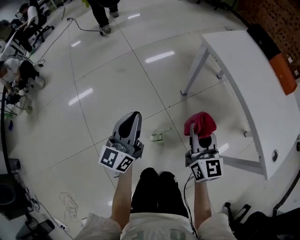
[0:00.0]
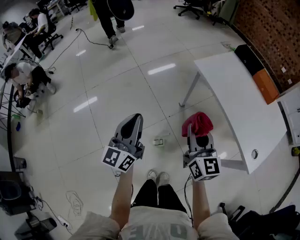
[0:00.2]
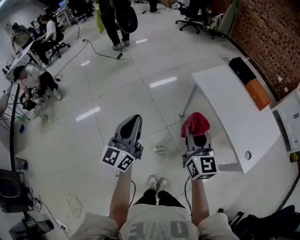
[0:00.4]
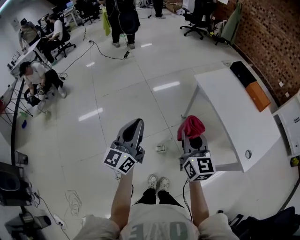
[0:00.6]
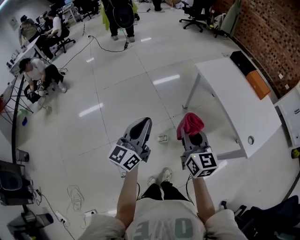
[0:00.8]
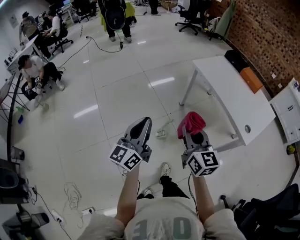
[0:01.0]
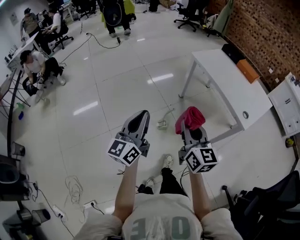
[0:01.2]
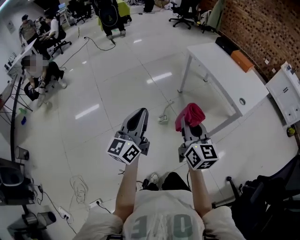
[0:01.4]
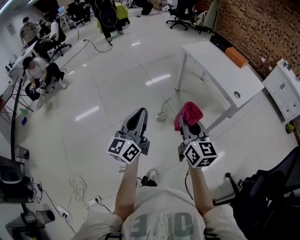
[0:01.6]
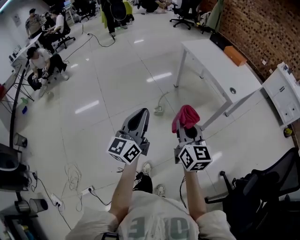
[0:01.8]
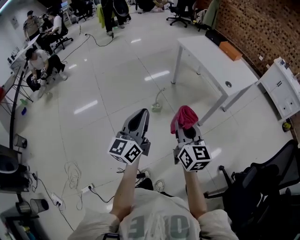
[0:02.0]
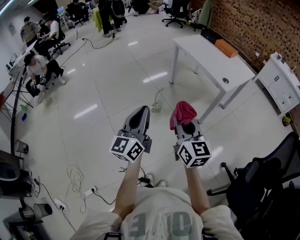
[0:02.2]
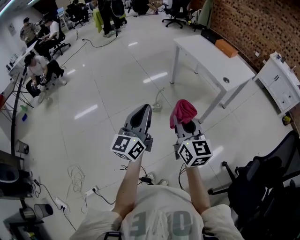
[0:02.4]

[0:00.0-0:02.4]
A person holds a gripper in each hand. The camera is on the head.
0.0 to 1.2 s: Both grippers travel together backward and upward, approximately 50 cm.
1.2 to 2.4 s: The left gripper is displaced backward and to the right by some 30 cm. The right gripper moves backward, about 30 cm.

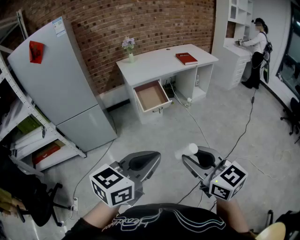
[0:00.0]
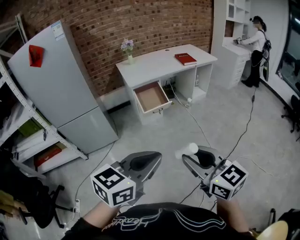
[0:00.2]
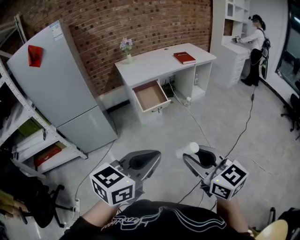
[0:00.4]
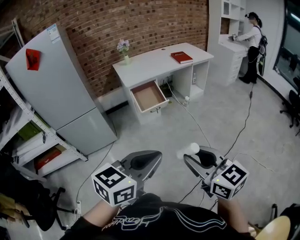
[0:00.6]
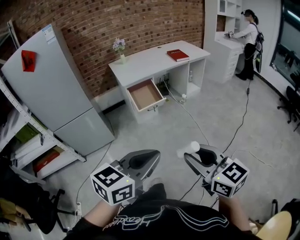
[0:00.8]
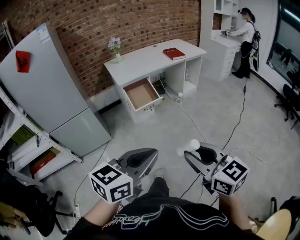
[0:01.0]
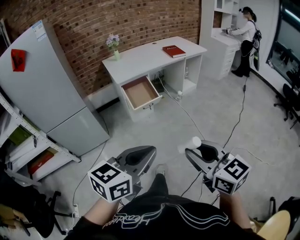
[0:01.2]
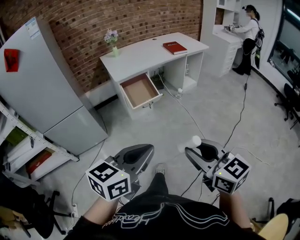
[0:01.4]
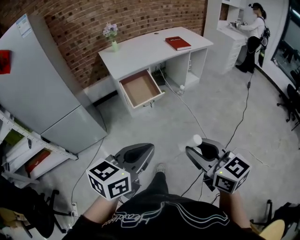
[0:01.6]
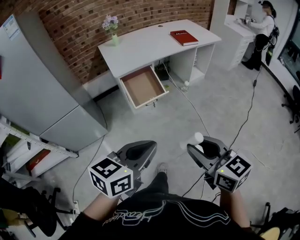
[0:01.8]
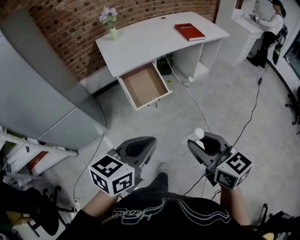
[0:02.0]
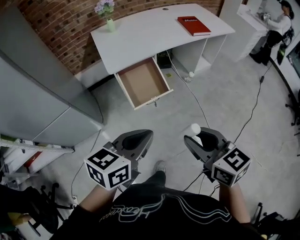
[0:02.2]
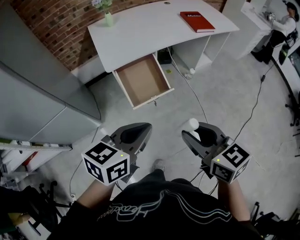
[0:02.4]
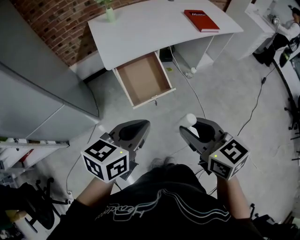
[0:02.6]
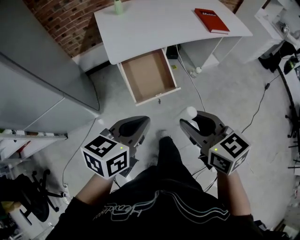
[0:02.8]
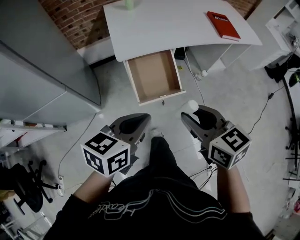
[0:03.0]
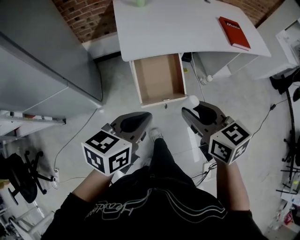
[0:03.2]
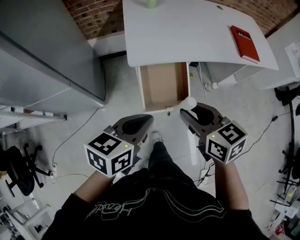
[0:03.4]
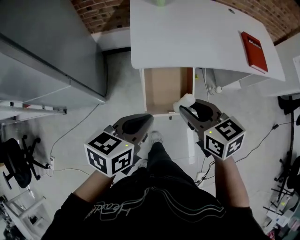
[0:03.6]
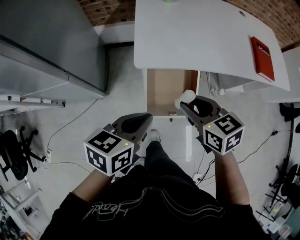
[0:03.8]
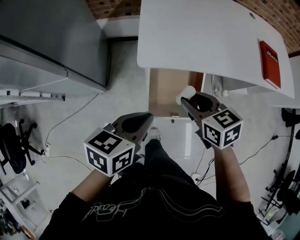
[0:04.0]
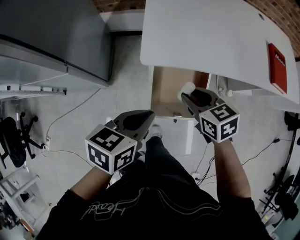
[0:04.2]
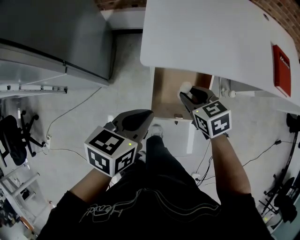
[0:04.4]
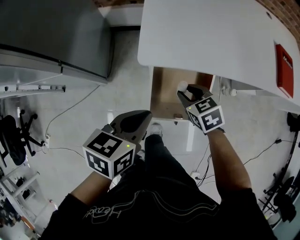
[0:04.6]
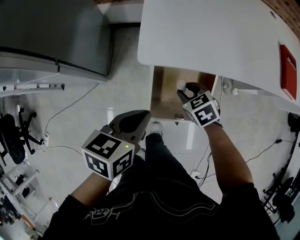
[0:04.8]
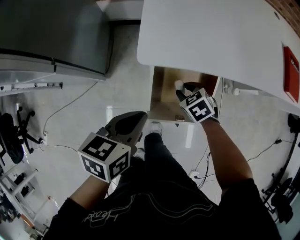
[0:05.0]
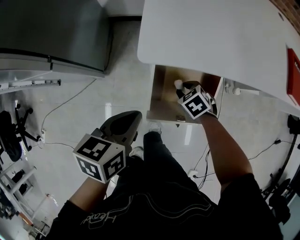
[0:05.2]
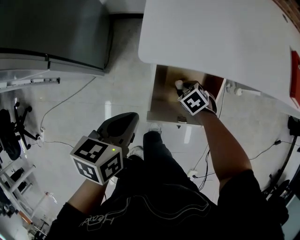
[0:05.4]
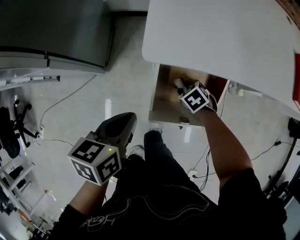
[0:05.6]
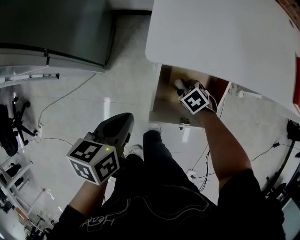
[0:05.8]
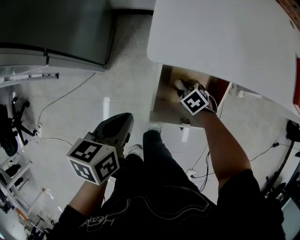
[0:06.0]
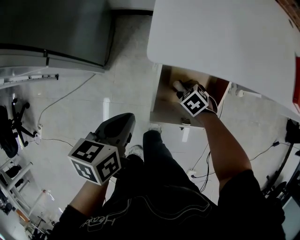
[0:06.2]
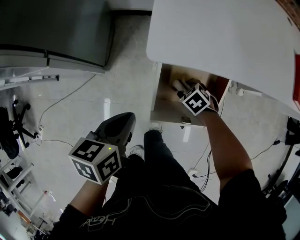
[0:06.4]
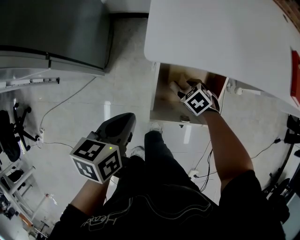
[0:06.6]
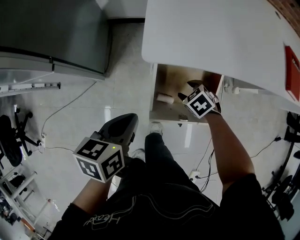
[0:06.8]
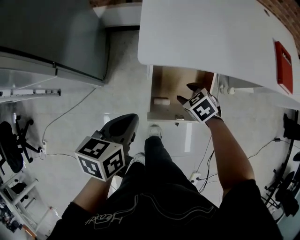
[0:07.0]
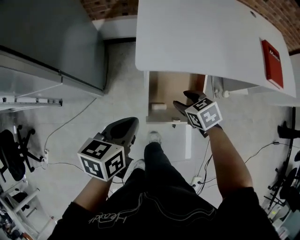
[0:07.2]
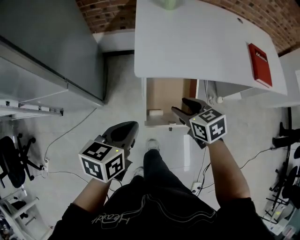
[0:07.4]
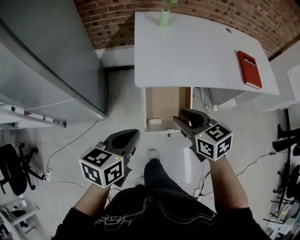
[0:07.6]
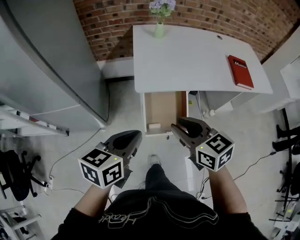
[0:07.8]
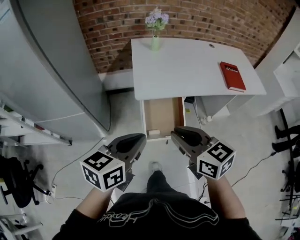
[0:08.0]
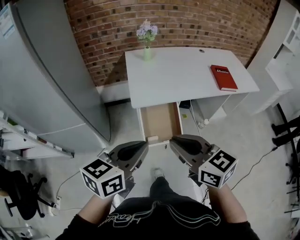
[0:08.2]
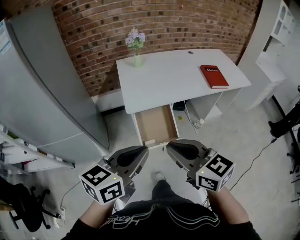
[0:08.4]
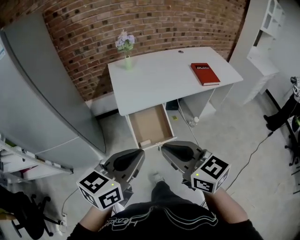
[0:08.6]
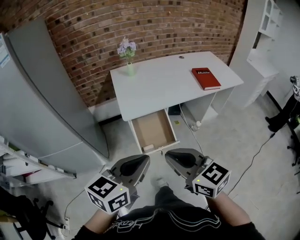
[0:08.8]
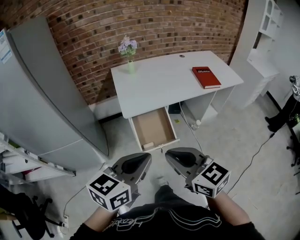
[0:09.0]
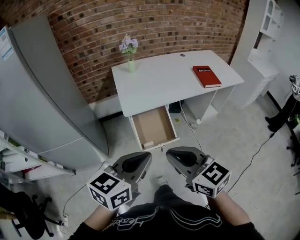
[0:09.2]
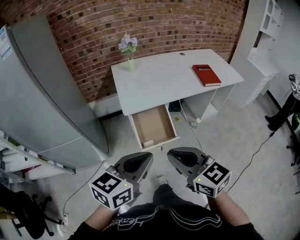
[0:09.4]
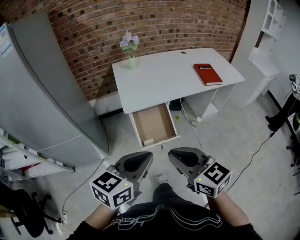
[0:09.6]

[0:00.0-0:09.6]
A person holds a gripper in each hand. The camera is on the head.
0.0 to 1.6 s: The left gripper shifts approximately 20 cm forward and downward, while the right gripper heads forward, covering about 15 cm.
1.6 to 3.2 s: Both grippers are carried forward, roughly 50 cm. The left gripper rotates about 20 degrees; the right gripper turns by some 20 degrees.
3.2 to 4.8 s: The right gripper heads downward and forward, covering approximately 40 cm, and tips its fingers downward by approximately 30 degrees. Meanwhile the left gripper is displaced forward and downward by about 25 cm, and rotates roughly 20 degrees.
4.8 to 6.4 s: The right gripper goes approximately 15 cm downward, and swivels approximately 20 degrees. Meanwhile the left gripper moves downward, some 10 cm.
6.4 to 8.0 s: The right gripper is displaced upward by some 60 cm, tips its fingers upward by approximately 60 degrees, and closes its fingers; the left gripper goes approximately 35 cm upward, and rotates some 40 degrees.
8.0 to 9.6 s: The left gripper travels backward and to the right by approximately 15 cm; the right gripper is displaced backward by some 15 cm.

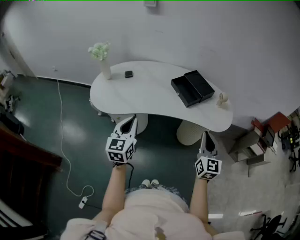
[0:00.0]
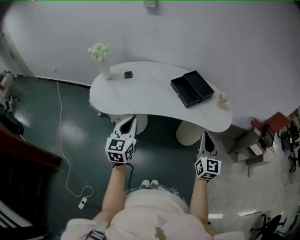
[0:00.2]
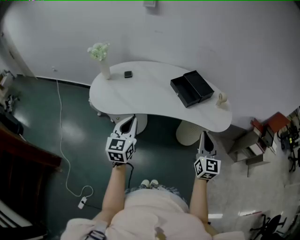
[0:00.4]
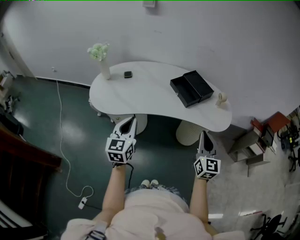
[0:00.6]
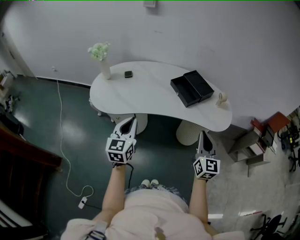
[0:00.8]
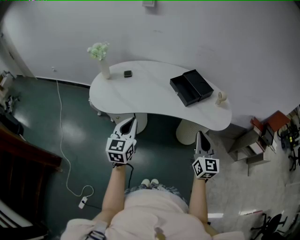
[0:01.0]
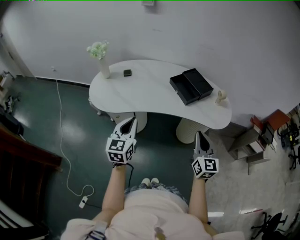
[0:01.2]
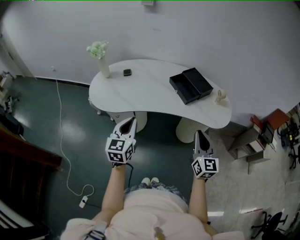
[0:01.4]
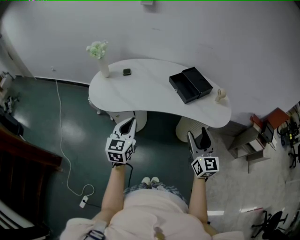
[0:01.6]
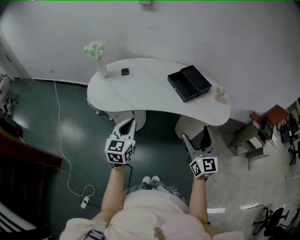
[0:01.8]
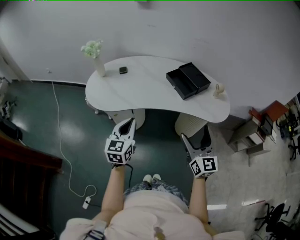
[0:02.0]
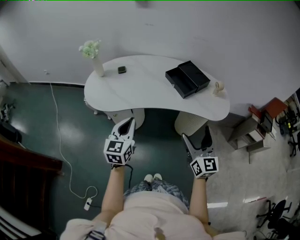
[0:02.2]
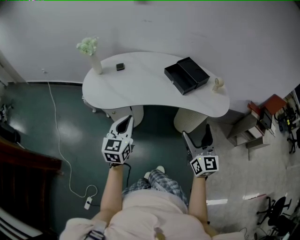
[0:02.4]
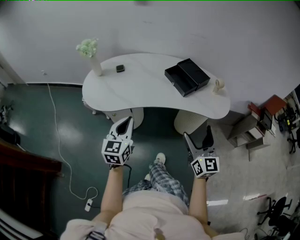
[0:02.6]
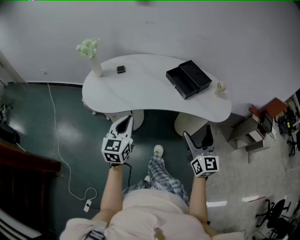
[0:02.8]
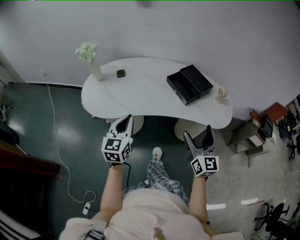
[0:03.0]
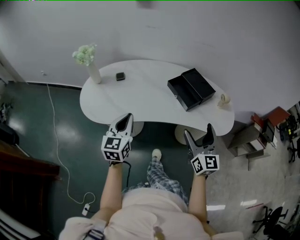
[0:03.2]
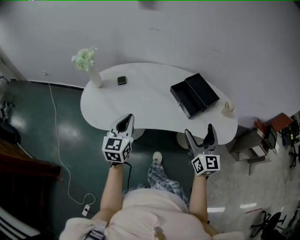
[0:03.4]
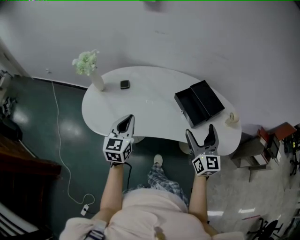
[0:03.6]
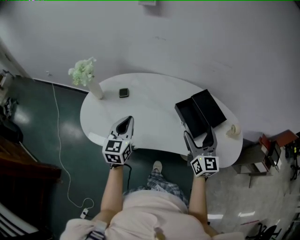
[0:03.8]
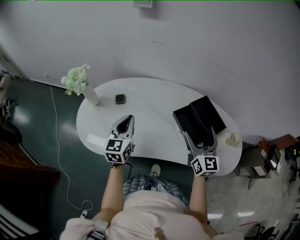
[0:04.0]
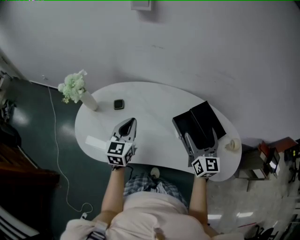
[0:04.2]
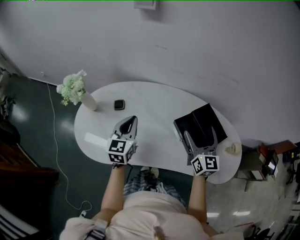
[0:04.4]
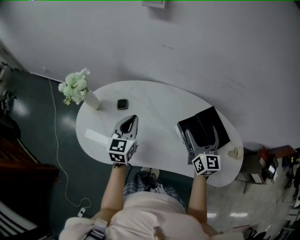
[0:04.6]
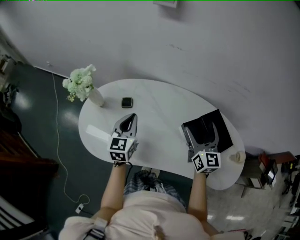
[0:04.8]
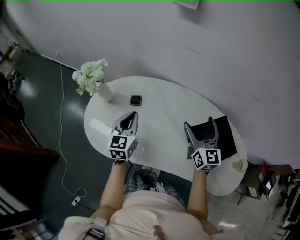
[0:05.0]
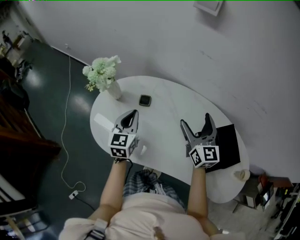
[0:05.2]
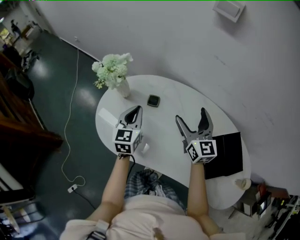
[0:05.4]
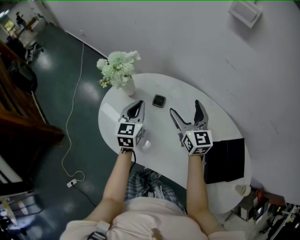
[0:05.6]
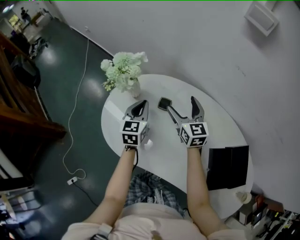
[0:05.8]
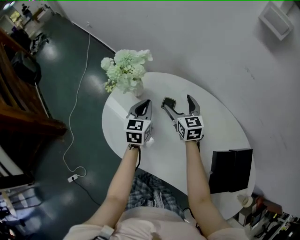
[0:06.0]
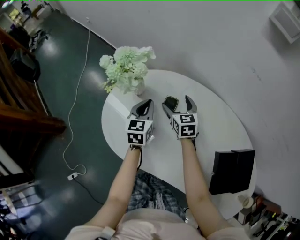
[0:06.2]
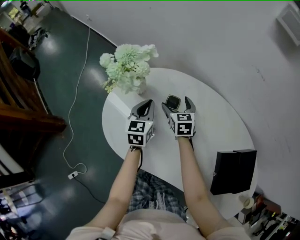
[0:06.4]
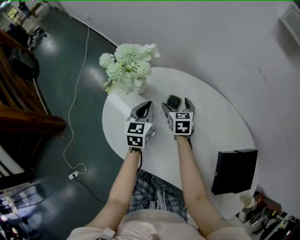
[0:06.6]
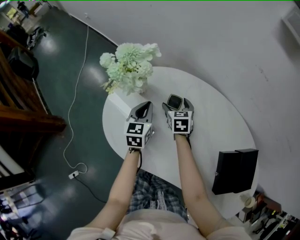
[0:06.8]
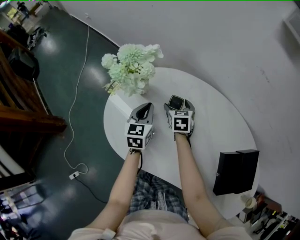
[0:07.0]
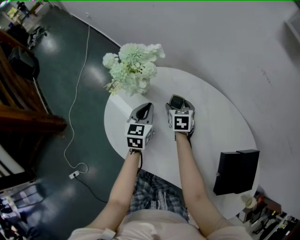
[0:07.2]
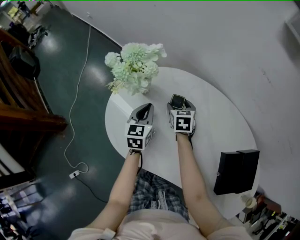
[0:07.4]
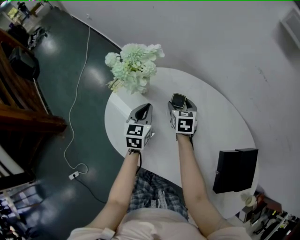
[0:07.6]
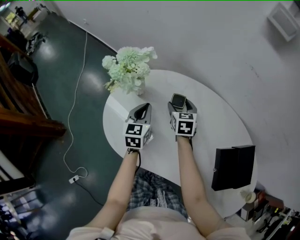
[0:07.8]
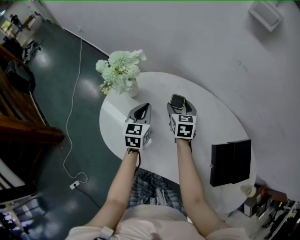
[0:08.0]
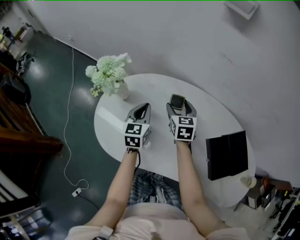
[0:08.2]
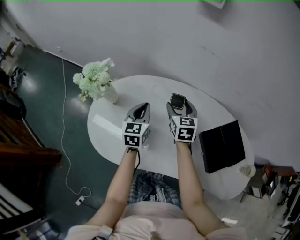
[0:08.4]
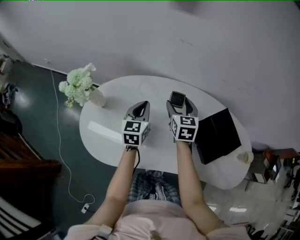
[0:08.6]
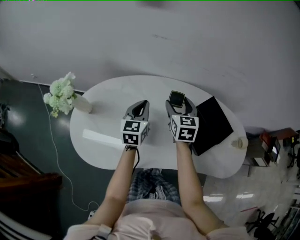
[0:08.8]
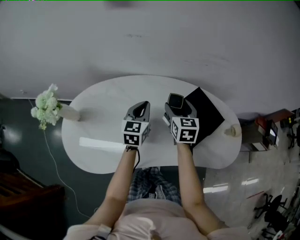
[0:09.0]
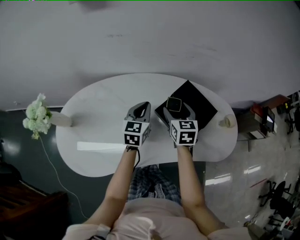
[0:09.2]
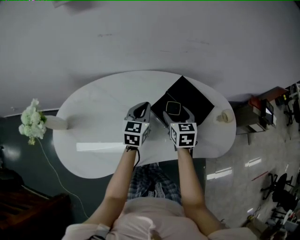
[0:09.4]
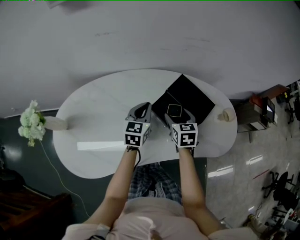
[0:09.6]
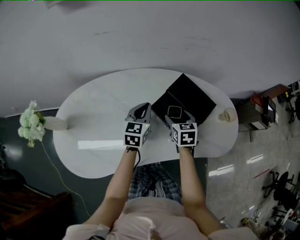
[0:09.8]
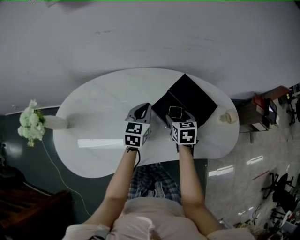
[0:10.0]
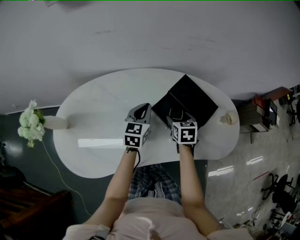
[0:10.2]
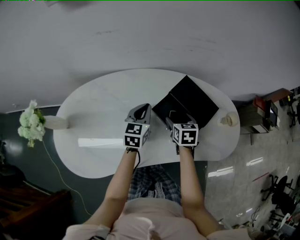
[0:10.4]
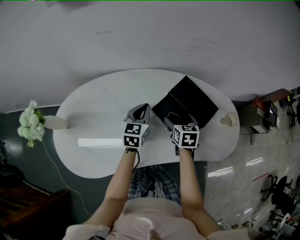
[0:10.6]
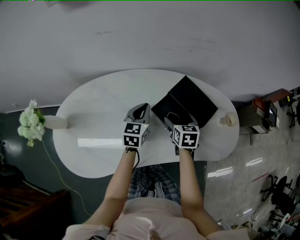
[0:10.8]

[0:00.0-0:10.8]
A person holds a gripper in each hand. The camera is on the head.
0.0 to 1.6 s: The right gripper opens its fingers.
1.6 to 3.0 s: The grippers both shift forward by approximately 5 cm. The right gripper opens.
3.0 to 4.6 s: The two grippers go roughly 35 cm forward.
4.6 to 6.2 s: The right gripper shifts by about 50 cm, and swivels approximately 50 degrees. Meanwhile the left gripper moves about 25 cm, and turns by roughly 30 degrees.
7.8 to 9.2 s: The pair of grippers is taken about 40 cm. The left gripper changes its angle by some 50 degrees, while the right gripper swivels roughly 40 degrees.
9.2 to 10.8 s: The right gripper is displaced downward by roughly 10 cm.

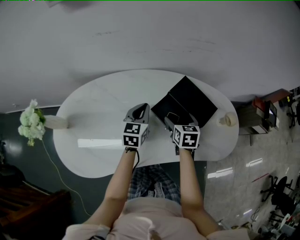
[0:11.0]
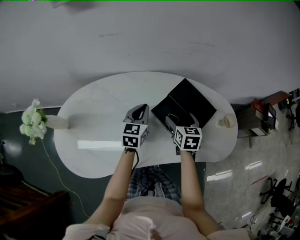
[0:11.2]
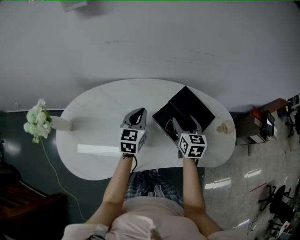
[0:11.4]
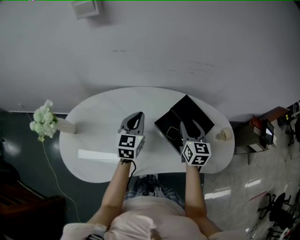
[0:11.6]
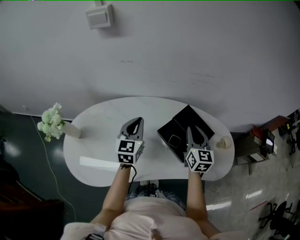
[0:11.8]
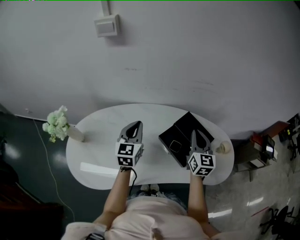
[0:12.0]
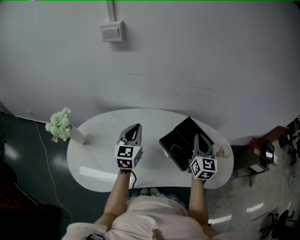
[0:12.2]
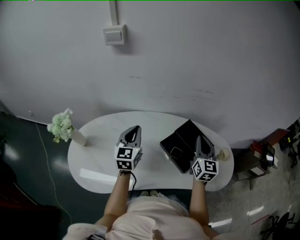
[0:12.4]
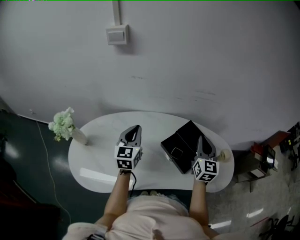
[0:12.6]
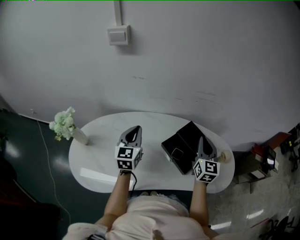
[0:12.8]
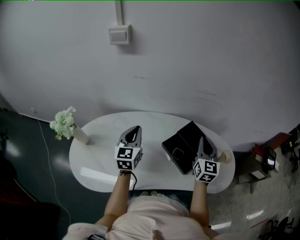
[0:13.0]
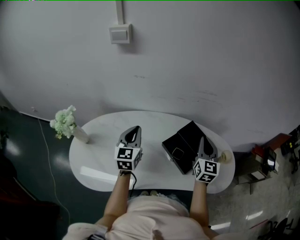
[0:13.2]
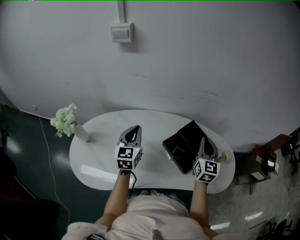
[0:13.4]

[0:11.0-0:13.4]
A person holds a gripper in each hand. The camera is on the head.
11.0 to 12.2 s: The right gripper is displaced upward by about 20 cm, tips its fingers upward by about 40 degrees, and closes up. The left gripper heads upward and to the left, covering roughly 20 cm, and swivels some 20 degrees.
12.2 to 13.4 s: The grippers move only a little.
